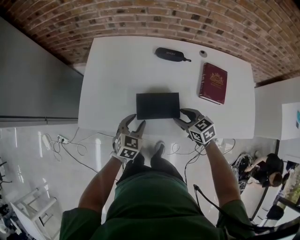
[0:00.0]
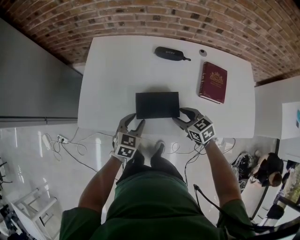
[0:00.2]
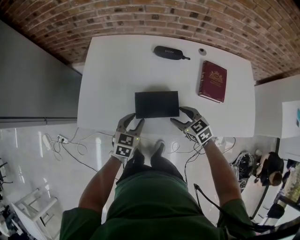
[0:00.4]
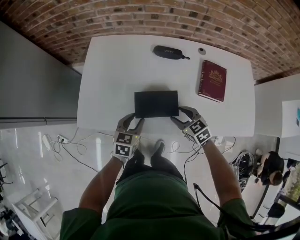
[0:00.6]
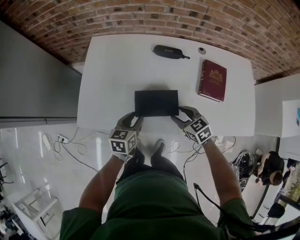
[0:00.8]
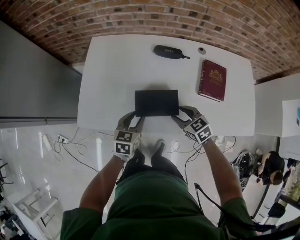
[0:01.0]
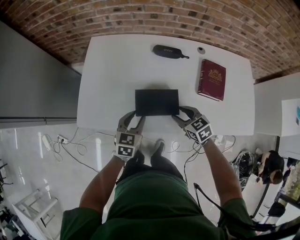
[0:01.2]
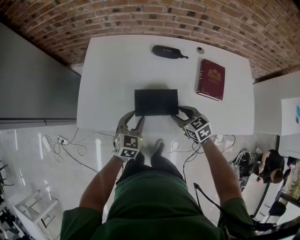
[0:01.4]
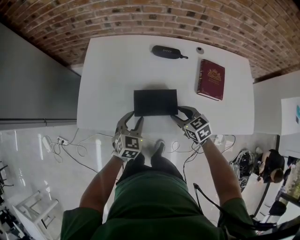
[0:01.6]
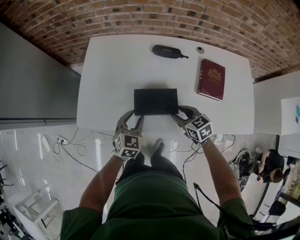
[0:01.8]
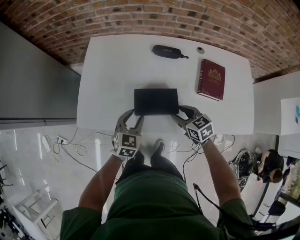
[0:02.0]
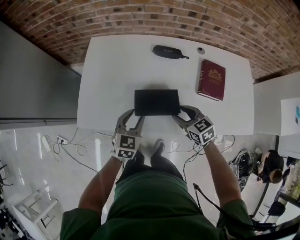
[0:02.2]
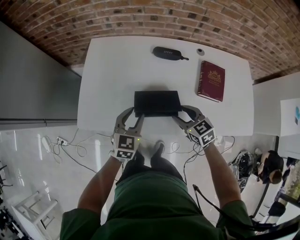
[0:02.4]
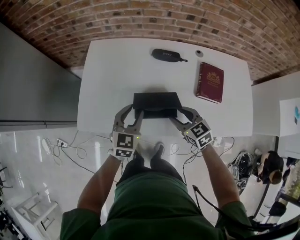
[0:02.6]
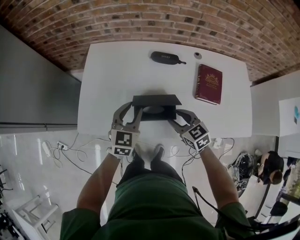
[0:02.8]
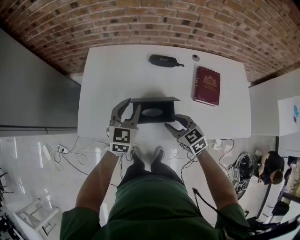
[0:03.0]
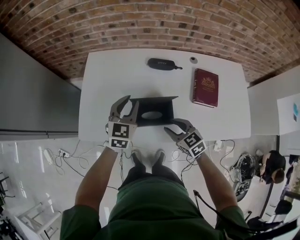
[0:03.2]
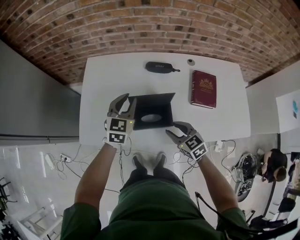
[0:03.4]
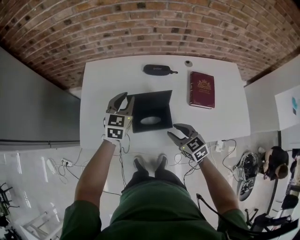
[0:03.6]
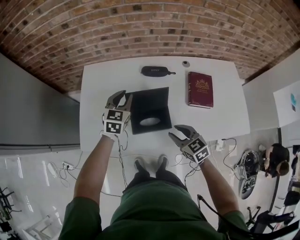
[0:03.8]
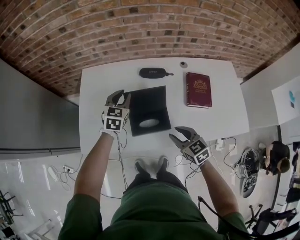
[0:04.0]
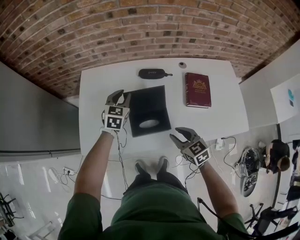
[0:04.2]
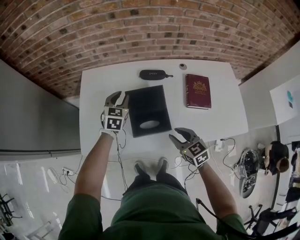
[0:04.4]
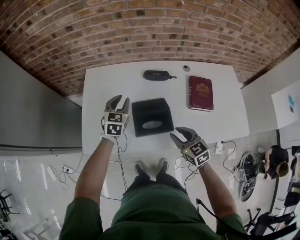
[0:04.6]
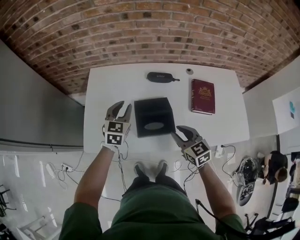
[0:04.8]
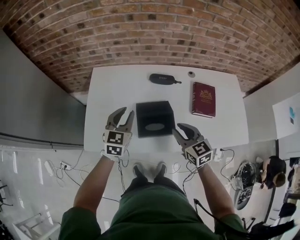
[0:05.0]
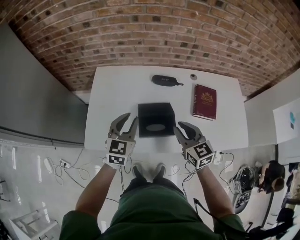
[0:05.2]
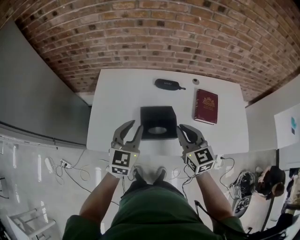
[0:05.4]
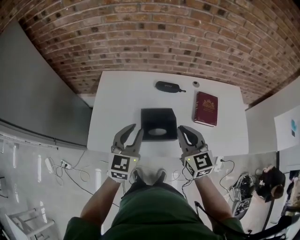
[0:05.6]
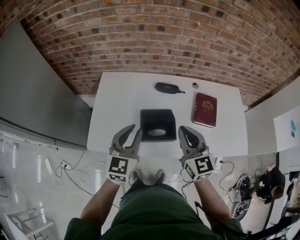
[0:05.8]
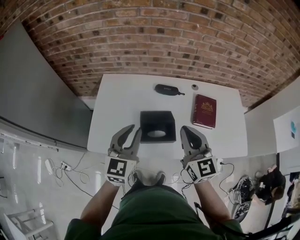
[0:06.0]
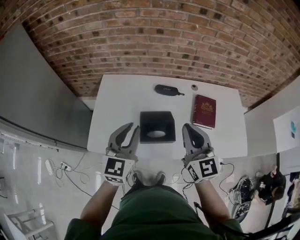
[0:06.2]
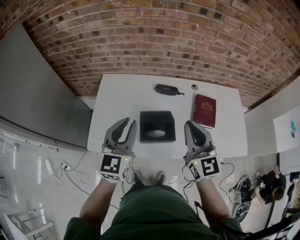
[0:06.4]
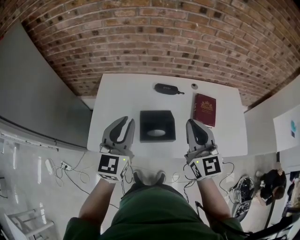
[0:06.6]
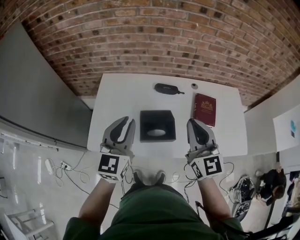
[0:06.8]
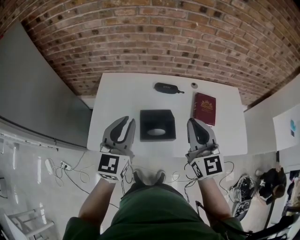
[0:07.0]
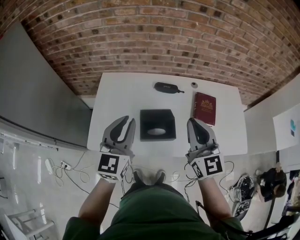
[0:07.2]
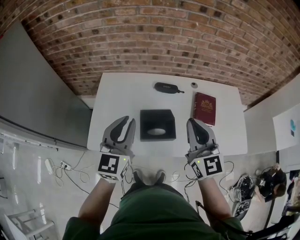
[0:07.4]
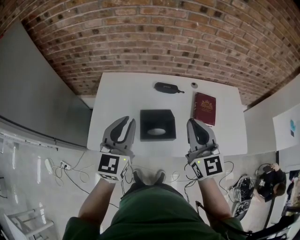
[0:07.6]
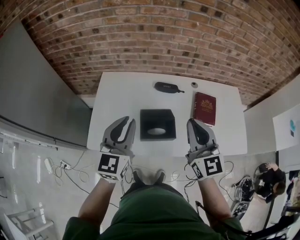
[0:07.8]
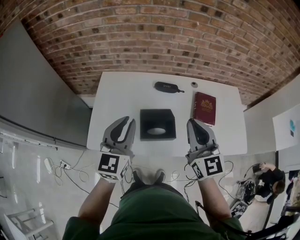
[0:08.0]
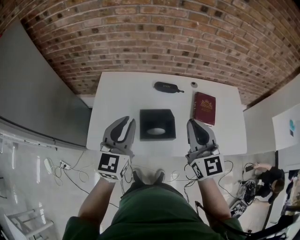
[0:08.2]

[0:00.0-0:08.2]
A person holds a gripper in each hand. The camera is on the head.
1.6 to 3.2 s: The right gripper ends up approximately 5 cm from where it was. Meanwhile the left gripper moves upward and forward, about 15 cm.
3.2 to 5.0 s: The left gripper moves approximately 10 cm forward and comes back, while the right gripper goes some 10 cm upward.
5.0 to 6.6 s: The right gripper is displaced upward by about 20 cm, changes its angle by some 30 degrees, and closes, while the left gripper goes approximately 20 cm upward and backward, and swivels some 20 degrees.
6.6 to 8.2 s: Neither gripper changes place.

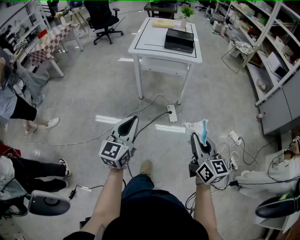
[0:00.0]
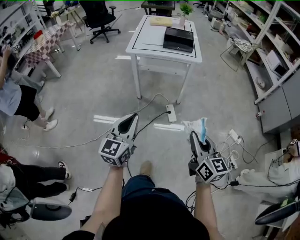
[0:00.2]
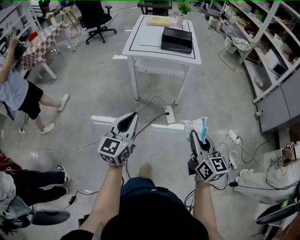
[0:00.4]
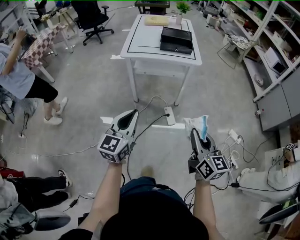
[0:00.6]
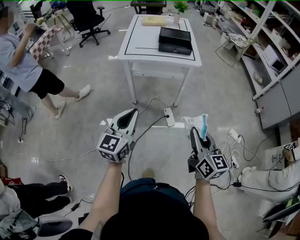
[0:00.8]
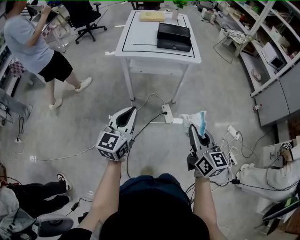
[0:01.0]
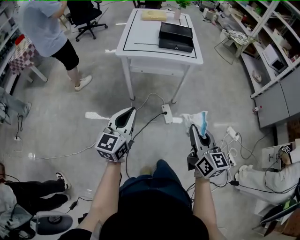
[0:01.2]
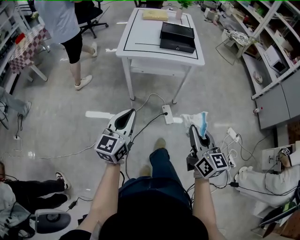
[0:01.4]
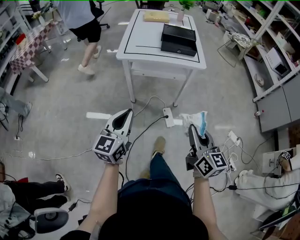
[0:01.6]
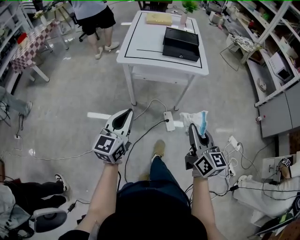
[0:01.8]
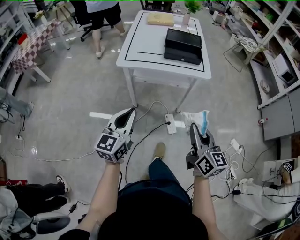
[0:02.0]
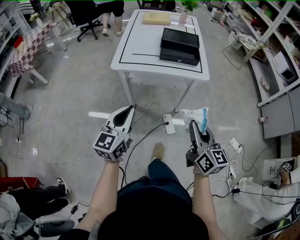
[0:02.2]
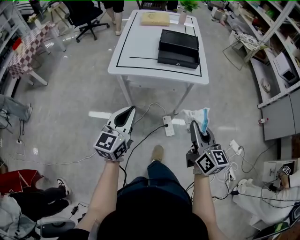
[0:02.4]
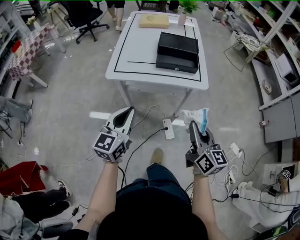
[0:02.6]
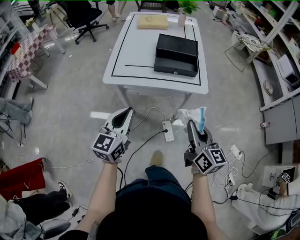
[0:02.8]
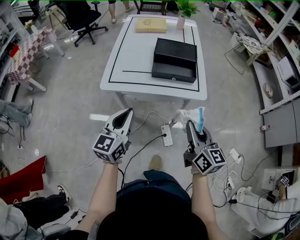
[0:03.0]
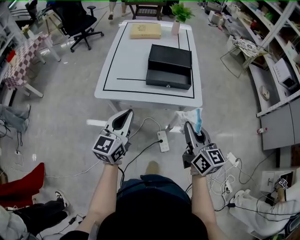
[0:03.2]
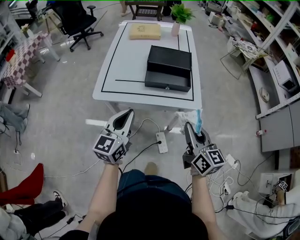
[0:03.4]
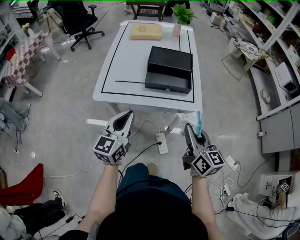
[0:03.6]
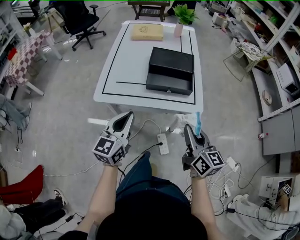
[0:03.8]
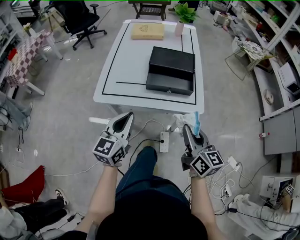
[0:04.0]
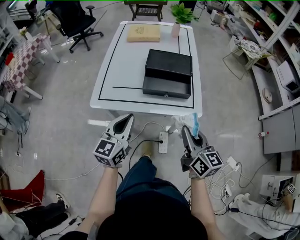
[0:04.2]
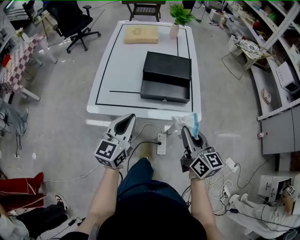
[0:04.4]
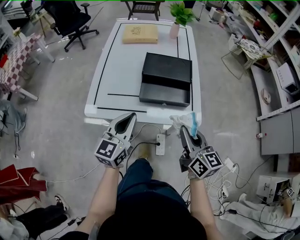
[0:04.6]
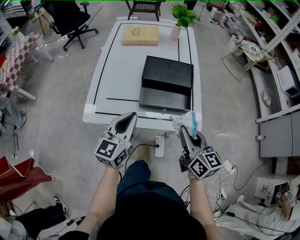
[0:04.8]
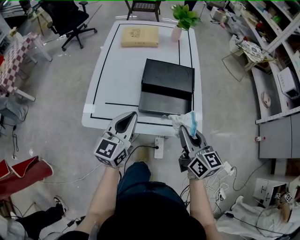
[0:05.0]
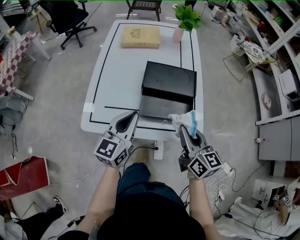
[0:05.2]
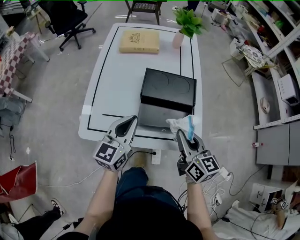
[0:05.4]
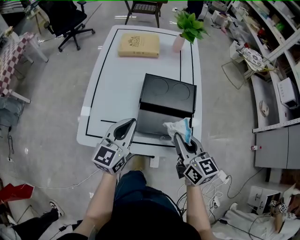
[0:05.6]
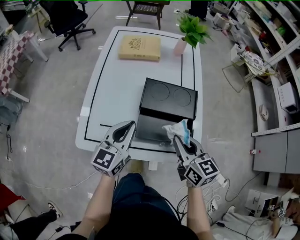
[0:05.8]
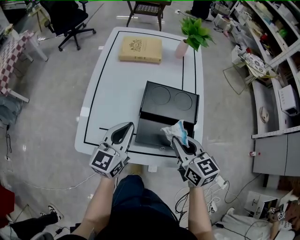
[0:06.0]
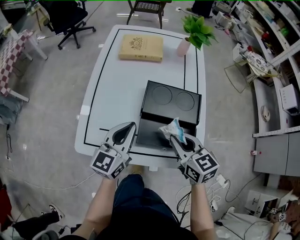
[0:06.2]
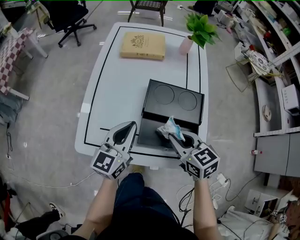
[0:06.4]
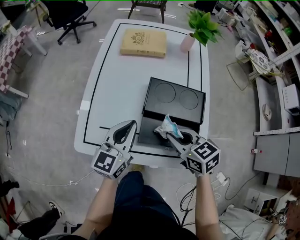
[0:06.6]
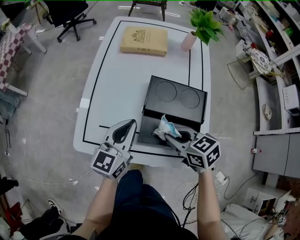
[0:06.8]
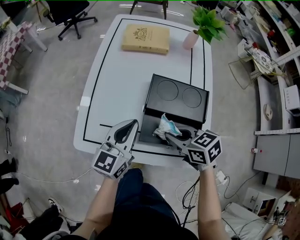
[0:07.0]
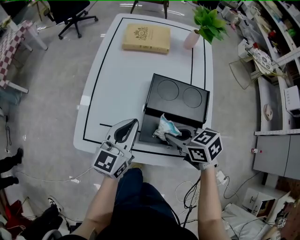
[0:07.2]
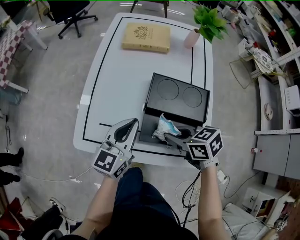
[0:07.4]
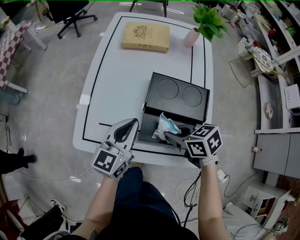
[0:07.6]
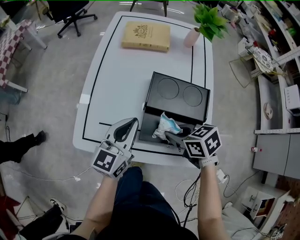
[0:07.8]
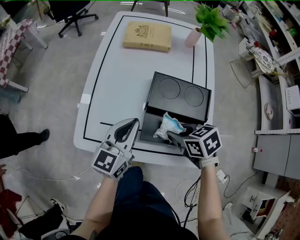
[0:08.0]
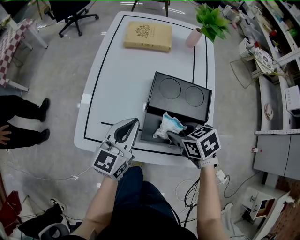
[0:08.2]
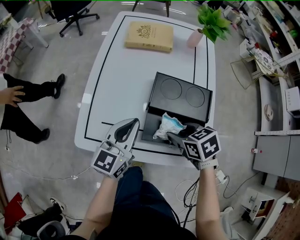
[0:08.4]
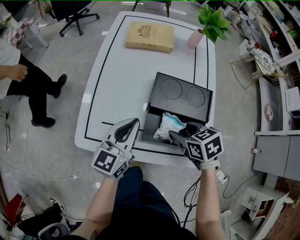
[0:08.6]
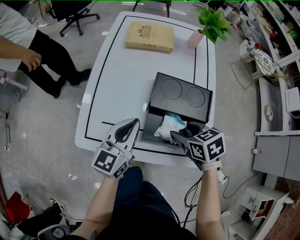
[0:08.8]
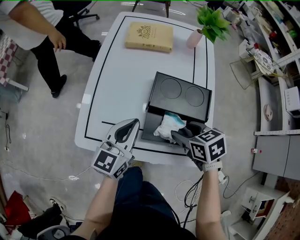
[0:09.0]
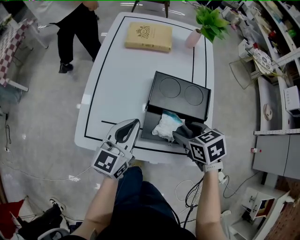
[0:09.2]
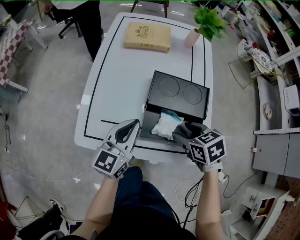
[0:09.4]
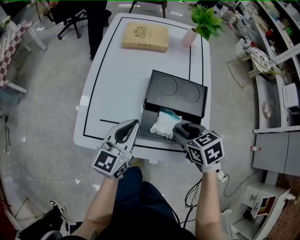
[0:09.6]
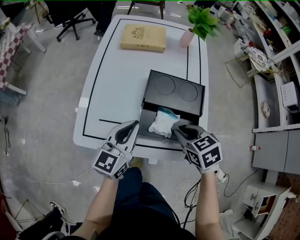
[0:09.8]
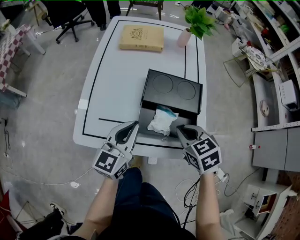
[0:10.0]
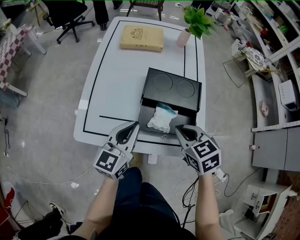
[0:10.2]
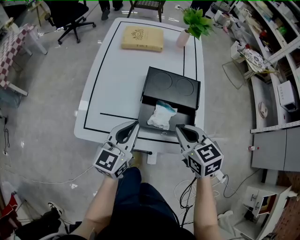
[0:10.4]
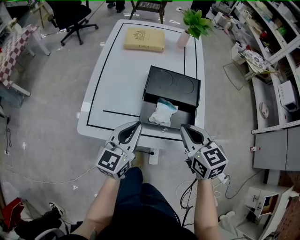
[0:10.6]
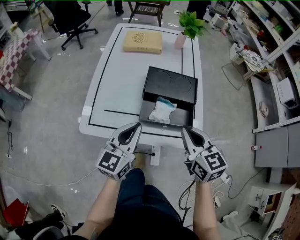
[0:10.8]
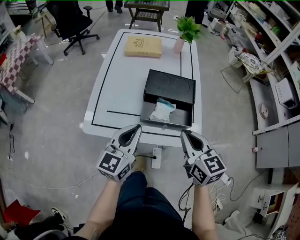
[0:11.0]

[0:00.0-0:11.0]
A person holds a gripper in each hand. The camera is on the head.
0.0 to 1.6 s: Both grippers travel together forward, approximately 25 cm.
1.6 to 3.2 s: The grippers both shift forward by some 30 cm.
3.2 to 4.8 s: Both grippers travel together forward, some 15 cm.
4.8 to 6.2 s: The two grippers go roughly 15 cm forward. The right gripper rotates approximately 30 degrees.
6.2 to 7.8 s: The right gripper is displaced downward by approximately 5 cm, and swivels roughly 30 degrees.
7.8 to 9.4 s: The right gripper opens up.
9.4 to 11.0 s: The right gripper is displaced upward and backward by roughly 20 cm, tips its fingers upward by approximately 40 degrees, and closes. Meanwhile the left gripper is displaced backward and upward by roughly 15 cm.

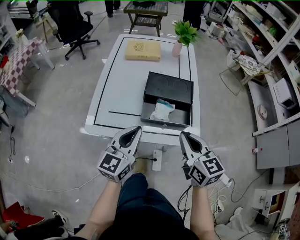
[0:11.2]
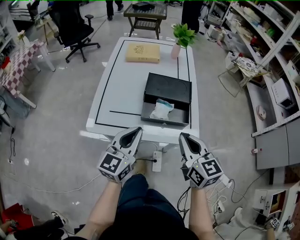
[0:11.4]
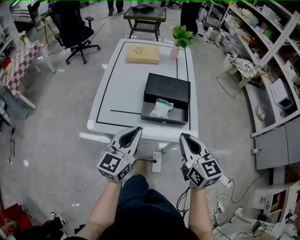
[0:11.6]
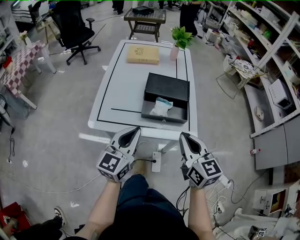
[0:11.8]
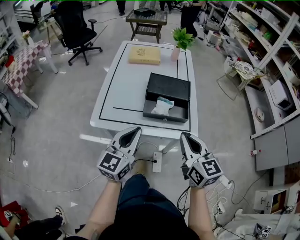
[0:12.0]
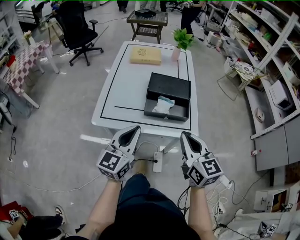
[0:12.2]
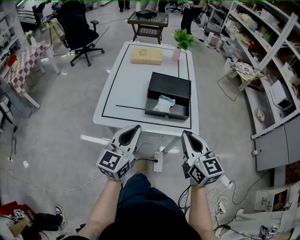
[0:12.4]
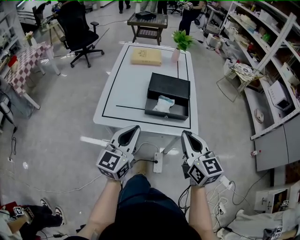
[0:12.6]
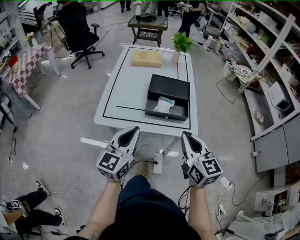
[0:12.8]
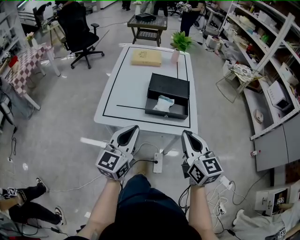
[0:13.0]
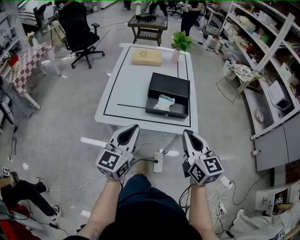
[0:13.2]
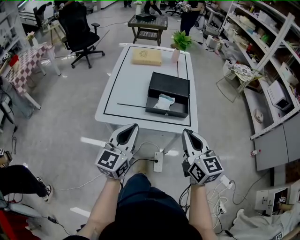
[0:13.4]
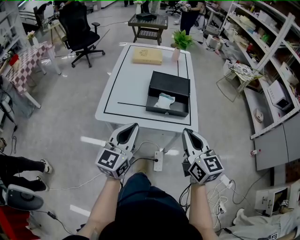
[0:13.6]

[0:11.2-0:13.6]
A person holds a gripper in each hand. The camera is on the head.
11.2 to 12.4 s: Both grippers move backward, some 10 cm.
12.4 to 13.6 s: The grippers make only small movements.

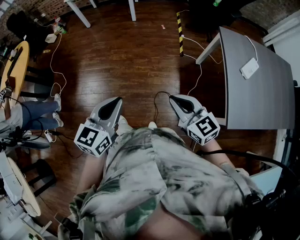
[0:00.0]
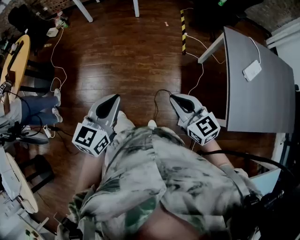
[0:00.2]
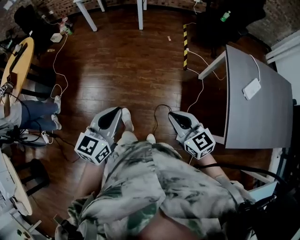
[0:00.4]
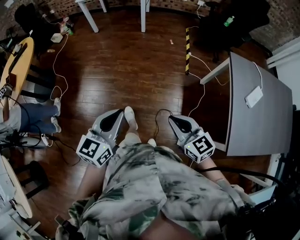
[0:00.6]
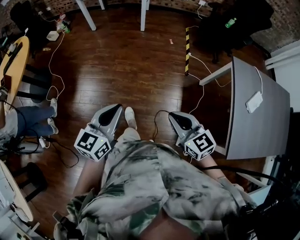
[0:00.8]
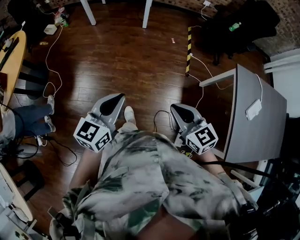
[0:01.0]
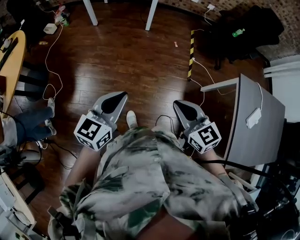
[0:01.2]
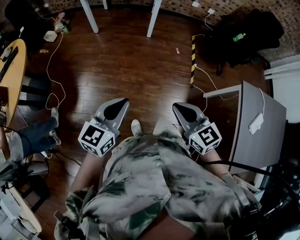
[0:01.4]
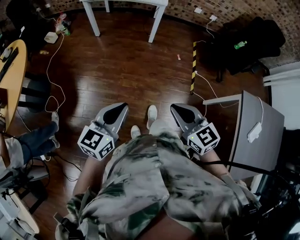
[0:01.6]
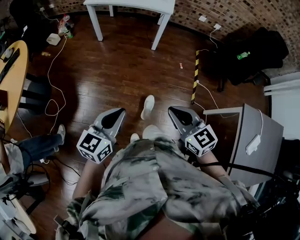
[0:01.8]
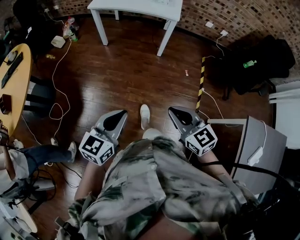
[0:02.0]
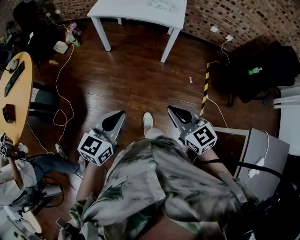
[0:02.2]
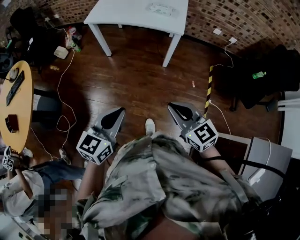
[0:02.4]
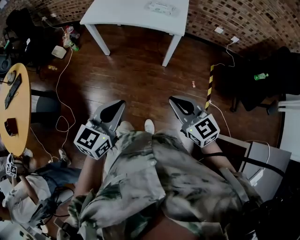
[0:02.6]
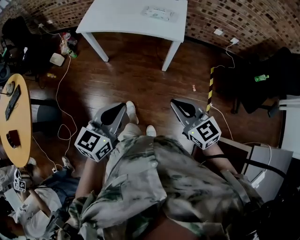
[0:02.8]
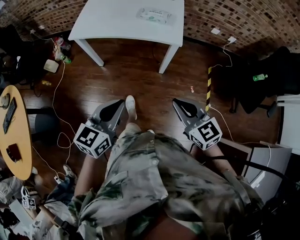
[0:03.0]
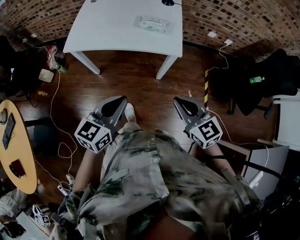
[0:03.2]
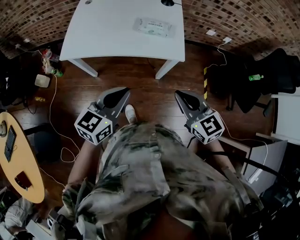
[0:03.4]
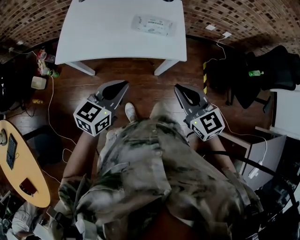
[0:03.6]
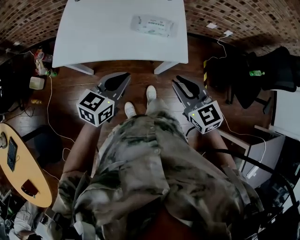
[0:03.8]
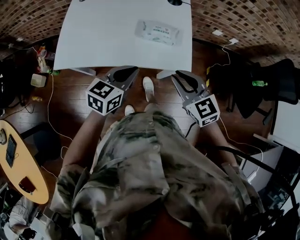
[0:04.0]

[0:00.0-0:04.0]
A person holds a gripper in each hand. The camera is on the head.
0.0 to 1.4 s: Both grippers travel together forward and to the left, some 35 cm.
1.4 to 2.6 s: Both grippers are carried forward, about 40 cm.
2.6 to 4.0 s: The pair of grippers is taken forward, some 50 cm. The left gripper rotates some 20 degrees.
